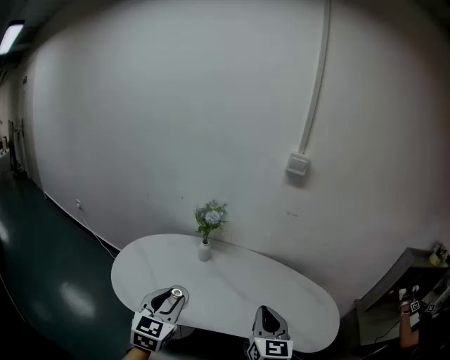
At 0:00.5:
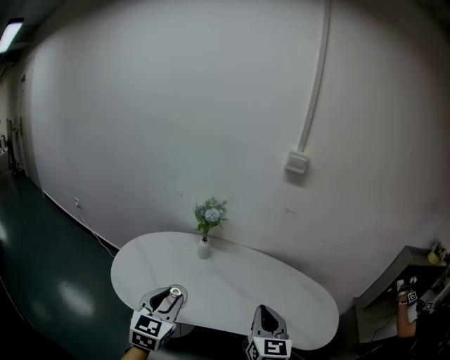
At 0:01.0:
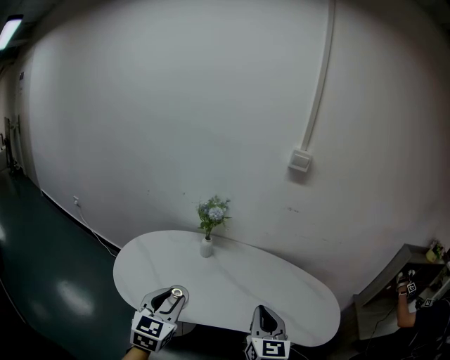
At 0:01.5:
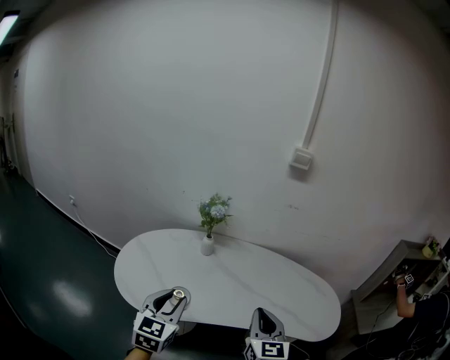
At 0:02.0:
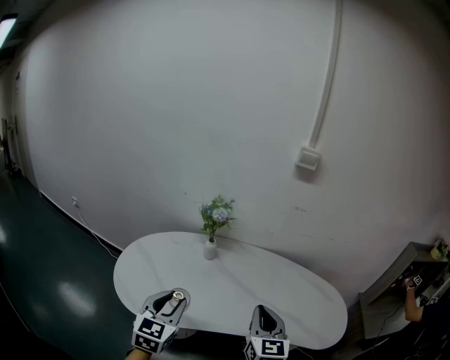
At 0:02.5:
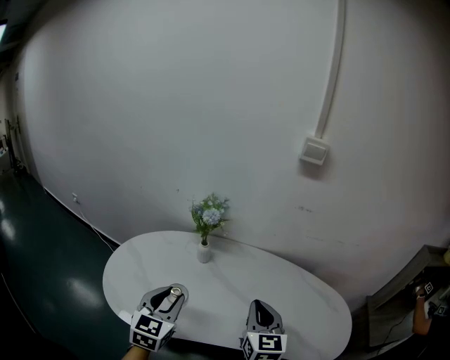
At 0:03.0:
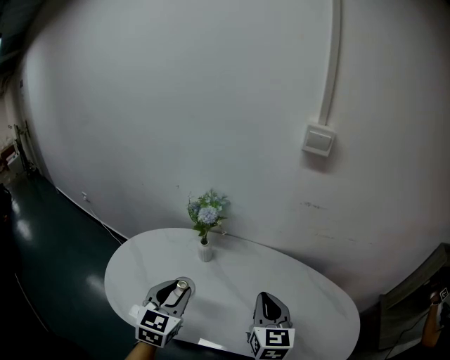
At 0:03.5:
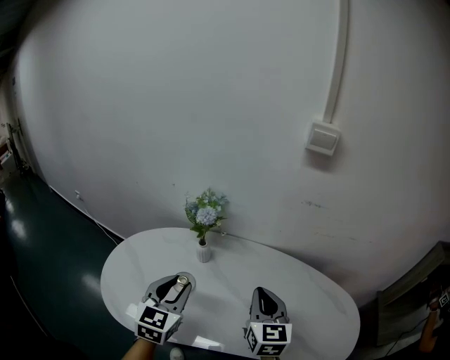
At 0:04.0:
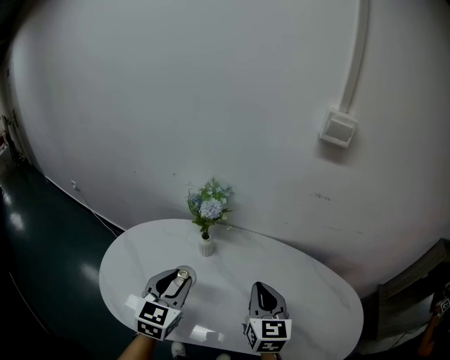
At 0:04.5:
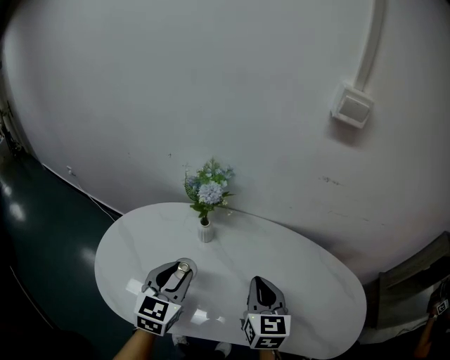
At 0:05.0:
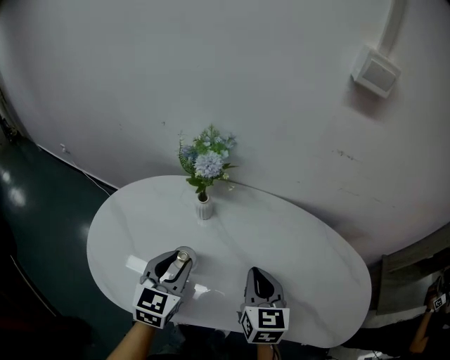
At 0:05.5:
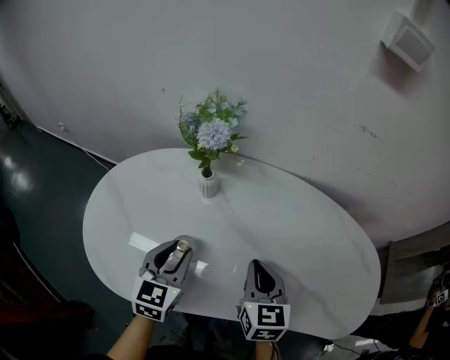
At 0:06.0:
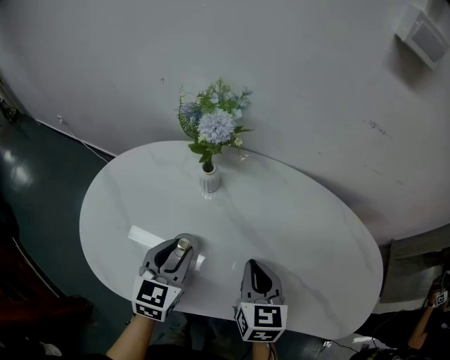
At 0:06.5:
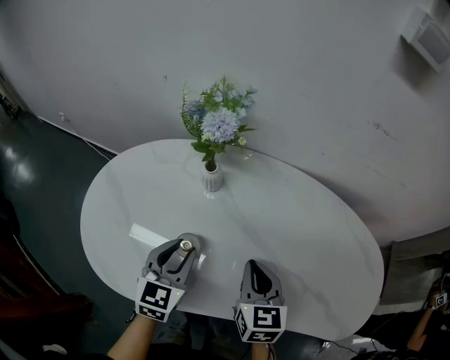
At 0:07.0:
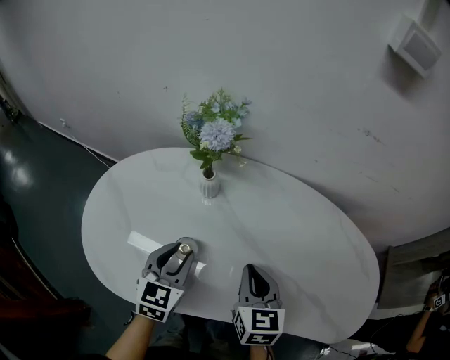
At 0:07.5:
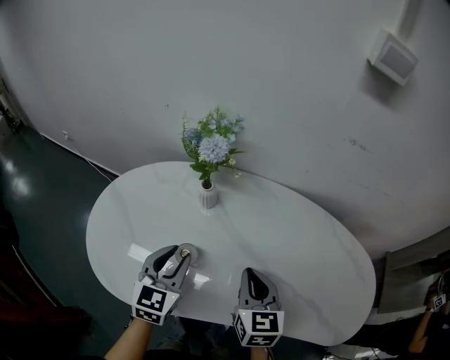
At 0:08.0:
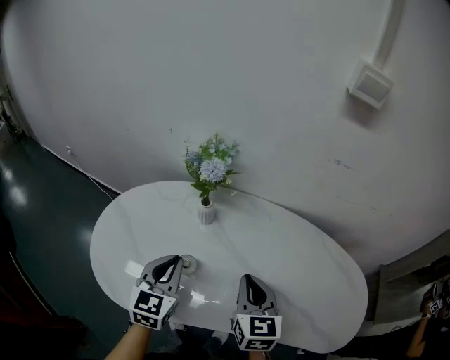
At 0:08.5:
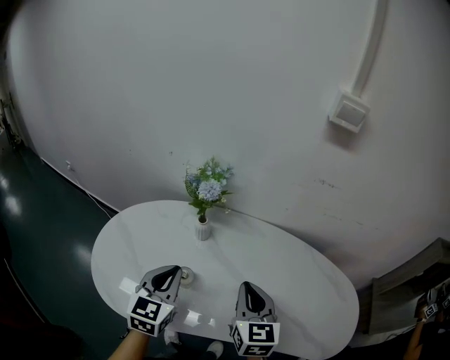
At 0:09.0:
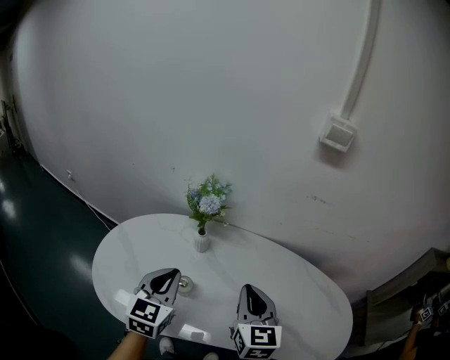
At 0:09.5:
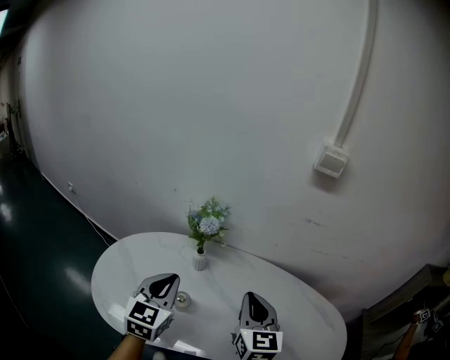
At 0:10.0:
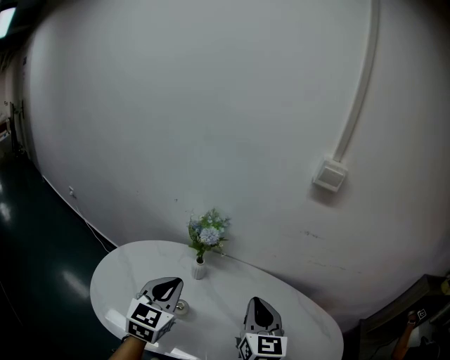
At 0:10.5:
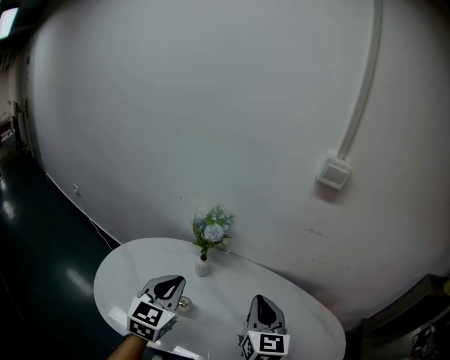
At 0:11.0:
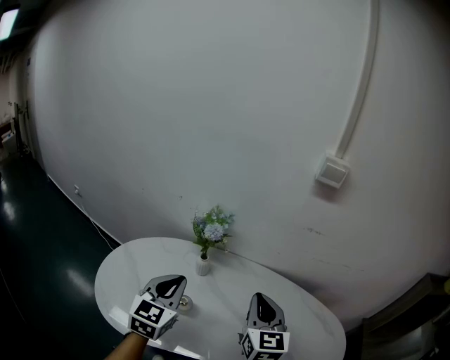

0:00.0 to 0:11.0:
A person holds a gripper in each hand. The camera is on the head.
0:00.0 to 0:02.0: The left gripper moves about 5 cm. Meanwhile the right gripper moves to the left, approximately 5 cm.
0:02.0 to 0:03.5: Both grippers move forward, approximately 15 cm.
0:03.5 to 0:05.5: The grippers both shift downward by about 15 cm.
0:05.5 to 0:07.5: There are only small adjustments of the grippers.
0:07.5 to 0:09.0: Both grippers move upward, some 10 cm. The left gripper closes up.
0:09.0 to 0:11.0: The left gripper shifts by some 5 cm, while the right gripper travels upward by approximately 5 cm.

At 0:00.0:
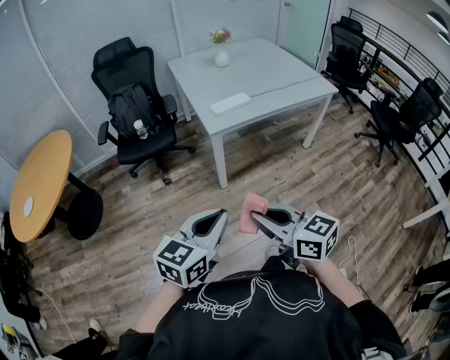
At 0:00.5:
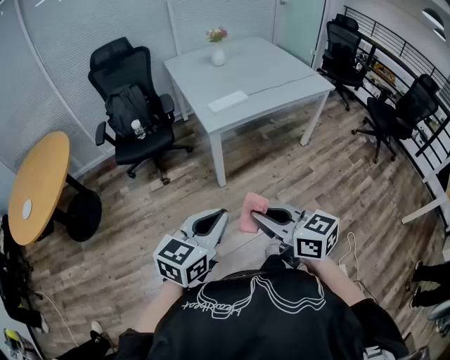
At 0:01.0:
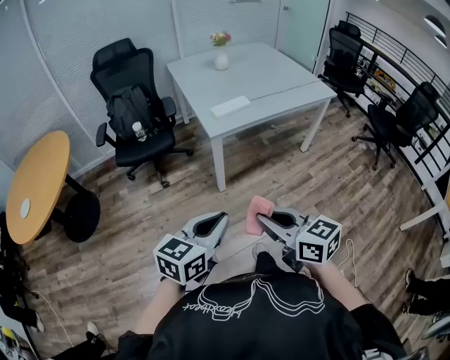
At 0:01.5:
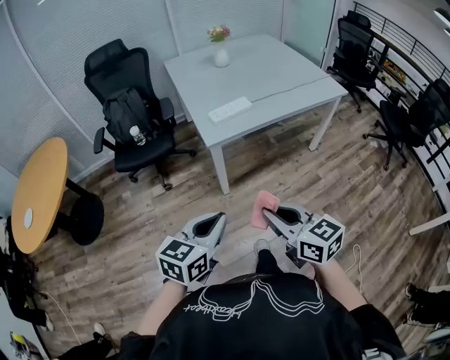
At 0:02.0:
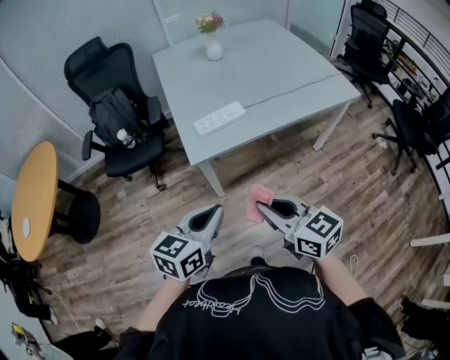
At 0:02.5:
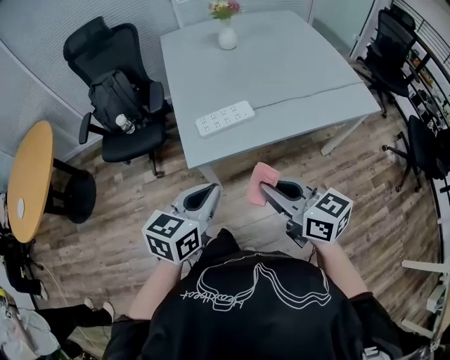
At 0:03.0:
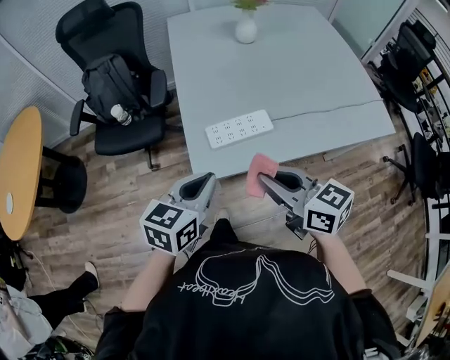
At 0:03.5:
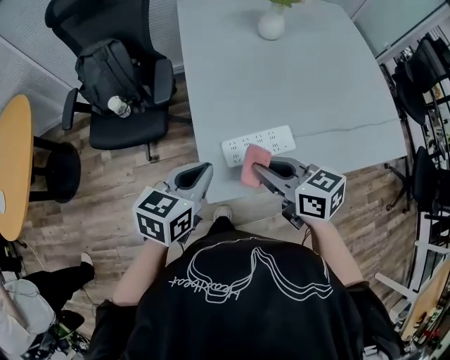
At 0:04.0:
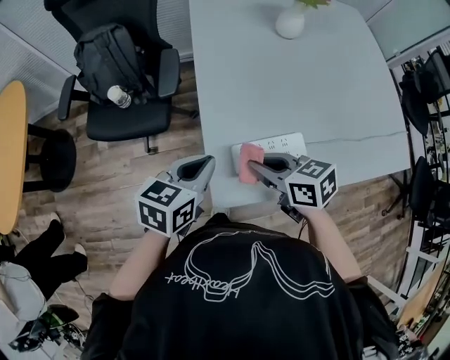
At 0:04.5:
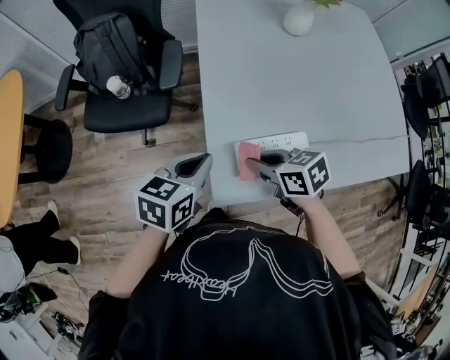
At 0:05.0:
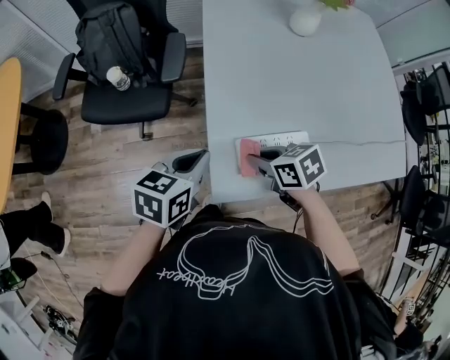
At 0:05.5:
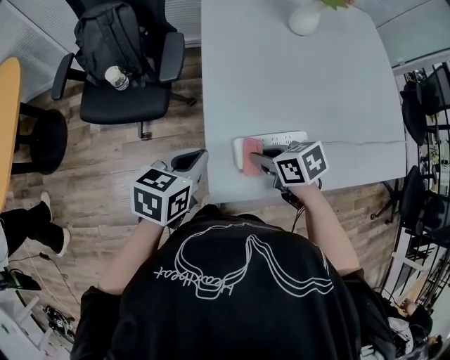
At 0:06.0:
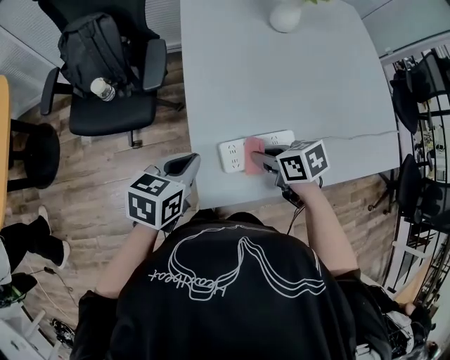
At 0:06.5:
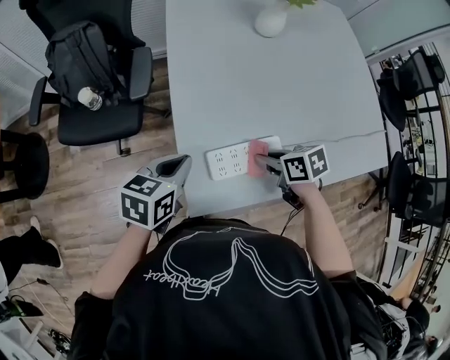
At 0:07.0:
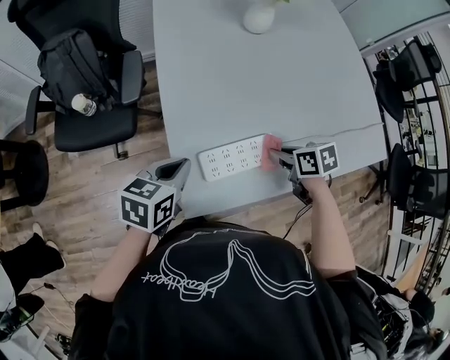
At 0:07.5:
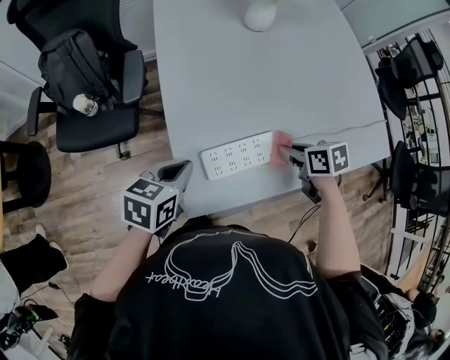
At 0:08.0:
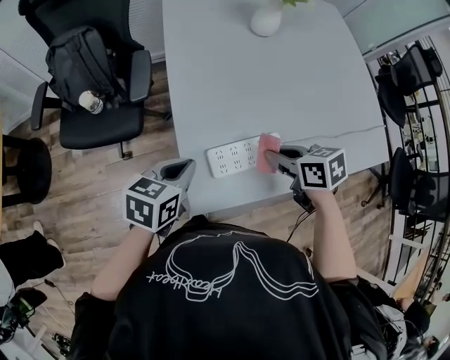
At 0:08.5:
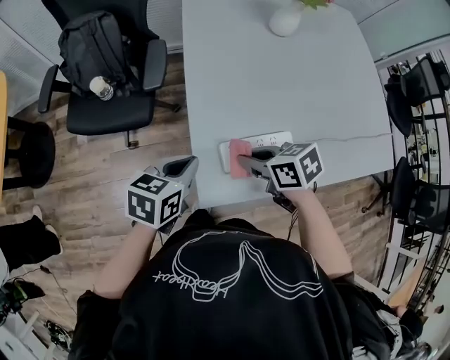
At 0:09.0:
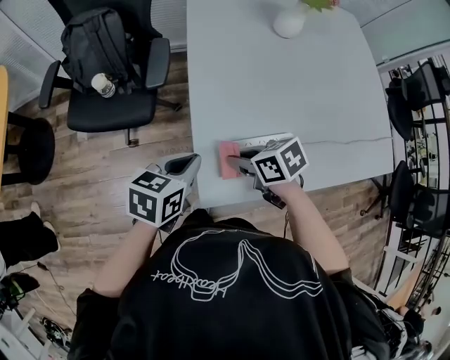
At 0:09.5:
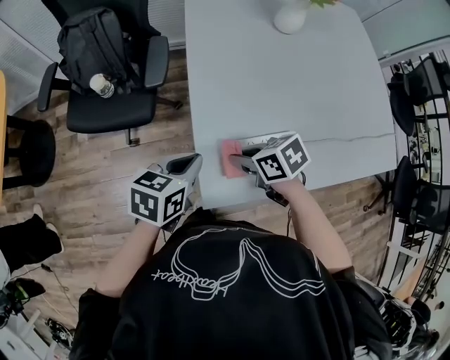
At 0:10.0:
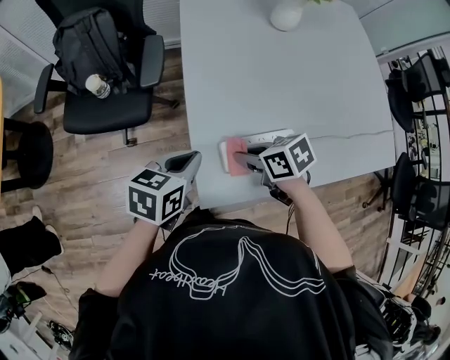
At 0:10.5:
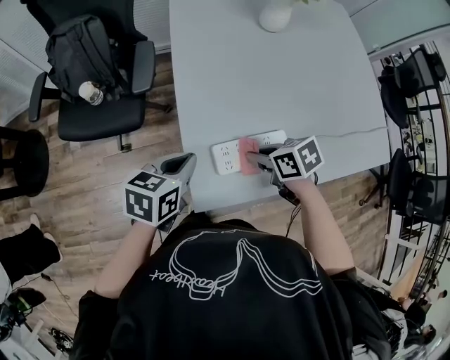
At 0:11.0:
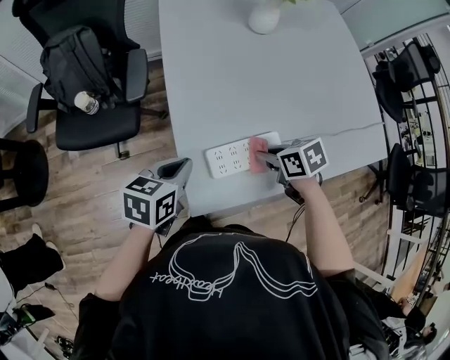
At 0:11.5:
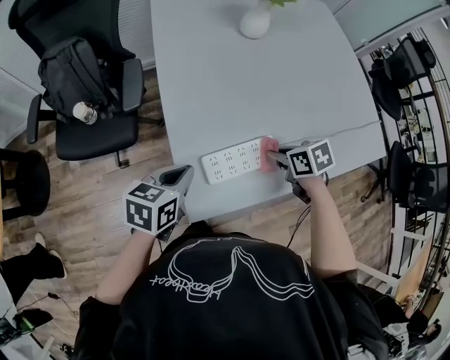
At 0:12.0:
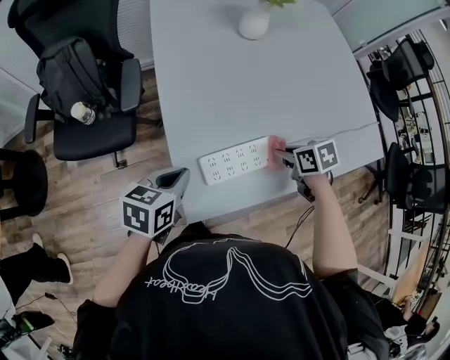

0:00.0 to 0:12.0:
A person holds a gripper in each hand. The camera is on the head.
0:00.0 to 0:02.0: The left gripper moves forward, some 30 cm. The right gripper goes some 30 cm forward and to the right.
0:02.0 to 0:04.0: Both grippers are carried forward, roughly 40 cm. The right gripper changes its angle by approximately 30 degrees.
0:04.0 to 0:06.0: The right gripper is displaced downward and to the right by approximately 10 cm.
0:06.0 to 0:08.0: The right gripper is displaced upward and to the right by about 10 cm.
0:08.0 to 0:10.0: The right gripper is displaced to the left and downward by some 15 cm.
0:10.0 to 0:12.0: The right gripper is displaced to the right by some 20 cm, and rotates about 20 degrees.

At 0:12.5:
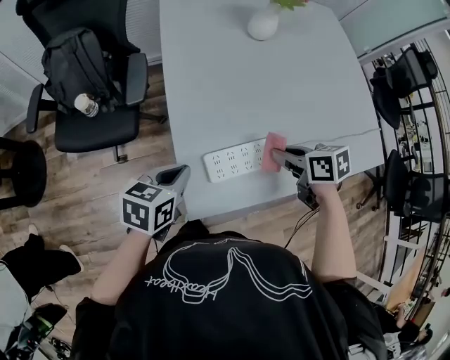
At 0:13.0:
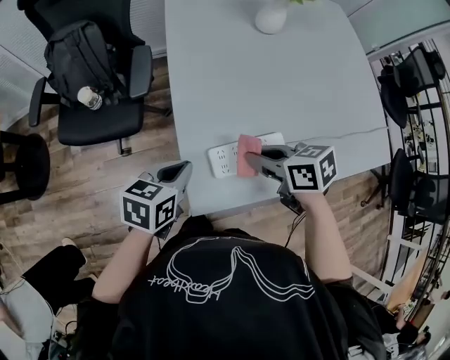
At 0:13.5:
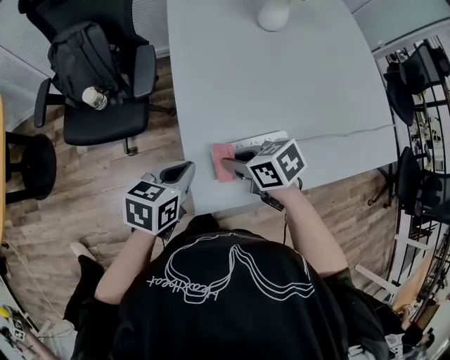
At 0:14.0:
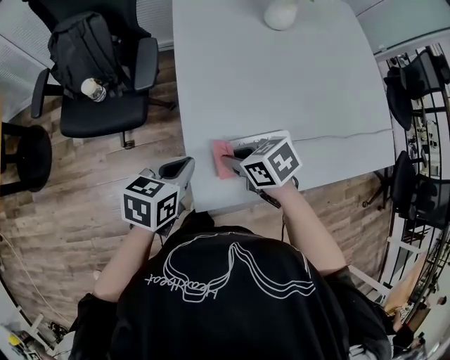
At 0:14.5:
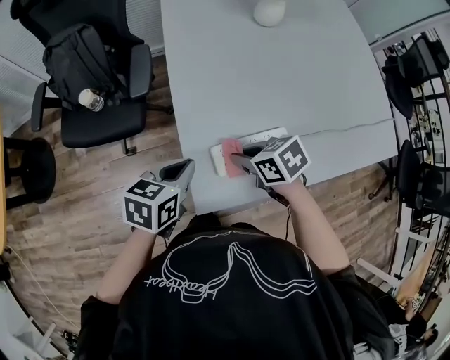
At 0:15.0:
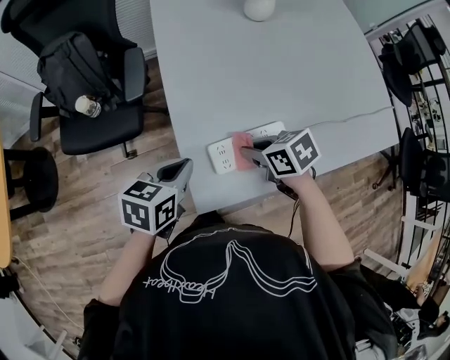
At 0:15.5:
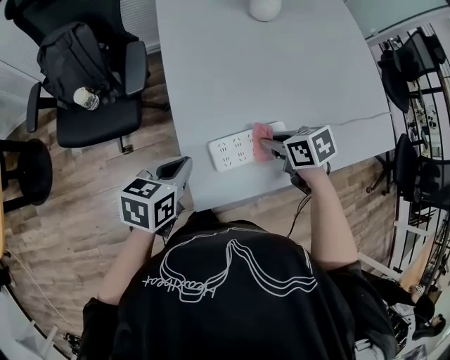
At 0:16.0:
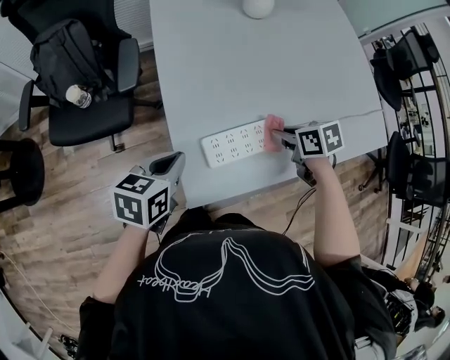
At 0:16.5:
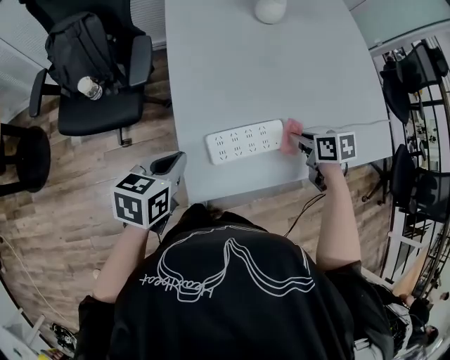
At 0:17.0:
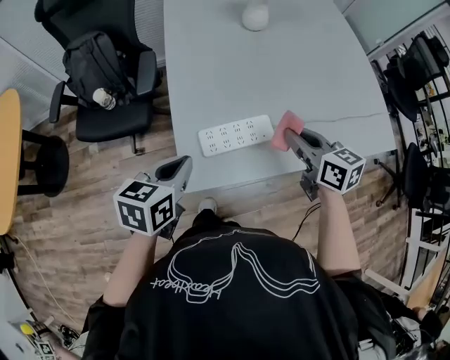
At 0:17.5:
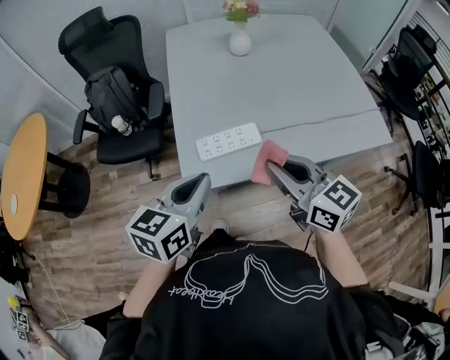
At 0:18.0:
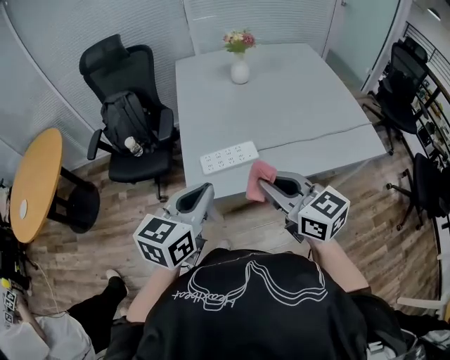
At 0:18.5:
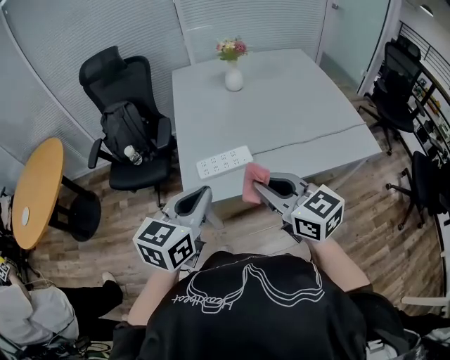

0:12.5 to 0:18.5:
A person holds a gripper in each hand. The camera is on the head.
0:12.5 to 0:14.5: The right gripper travels to the left and downward by roughly 15 cm.
0:14.5 to 0:16.5: The right gripper goes approximately 20 cm to the right, and rotates some 20 degrees.
0:16.5 to 0:18.5: The right gripper goes approximately 35 cm upward and backward, and tilts its fingers roughly 50 degrees upward. Meanwhile the left gripper shifts roughly 35 cm upward, backward and to the right, and turns by some 30 degrees.
